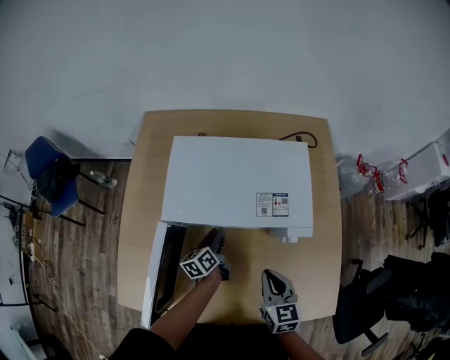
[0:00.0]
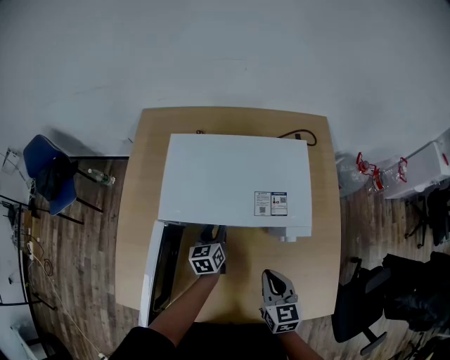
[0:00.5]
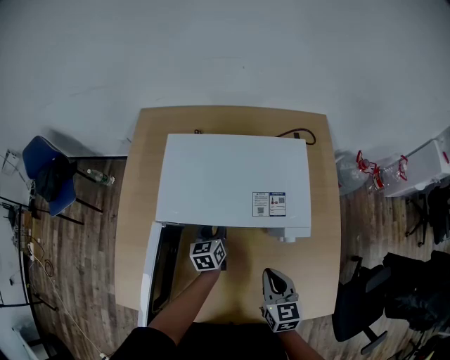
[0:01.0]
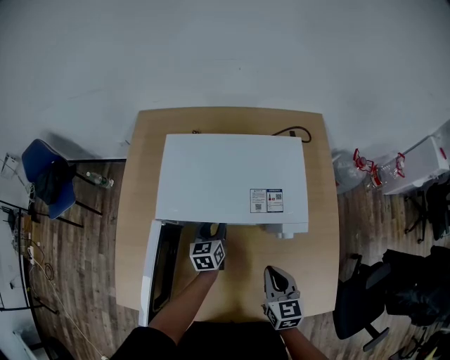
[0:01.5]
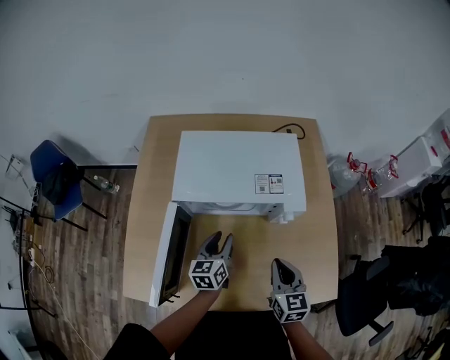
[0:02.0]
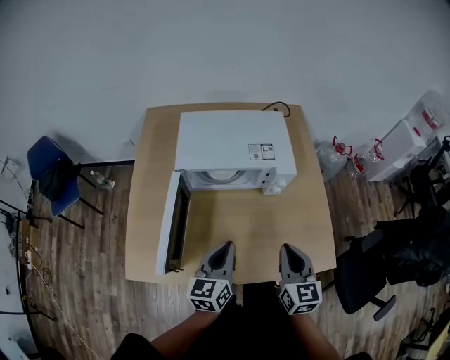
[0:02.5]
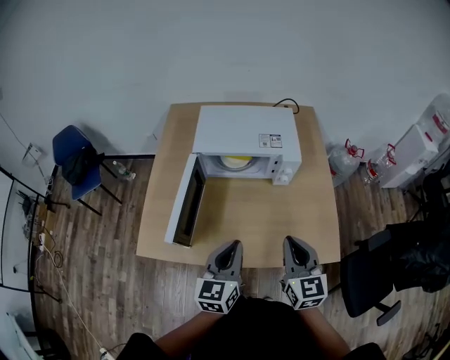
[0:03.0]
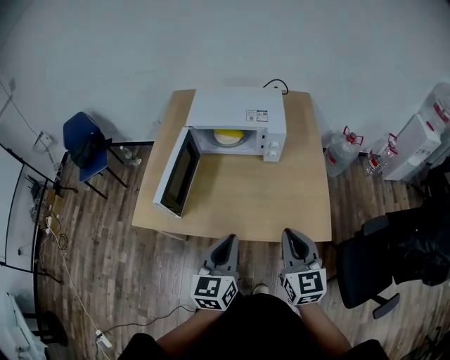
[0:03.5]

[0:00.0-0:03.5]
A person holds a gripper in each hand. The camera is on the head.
0:00.0 to 0:02.0: The right gripper shifts by roughly 5 cm.
0:02.0 to 0:03.5: The right gripper changes place by roughly 25 cm.

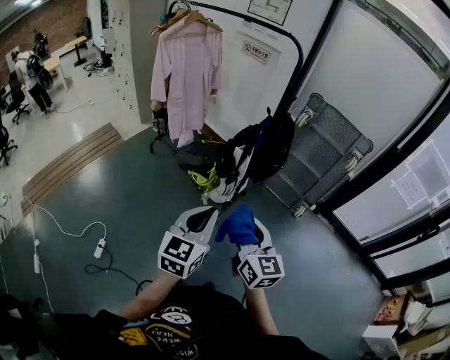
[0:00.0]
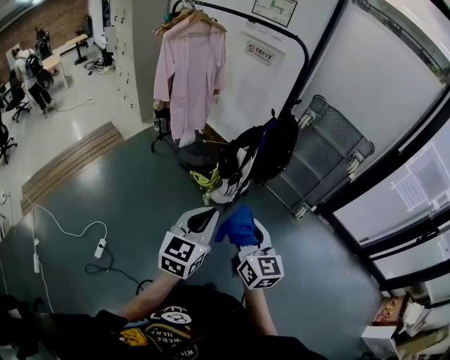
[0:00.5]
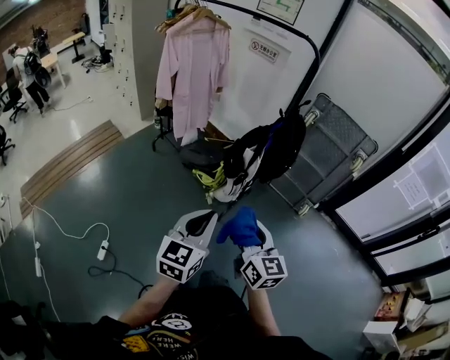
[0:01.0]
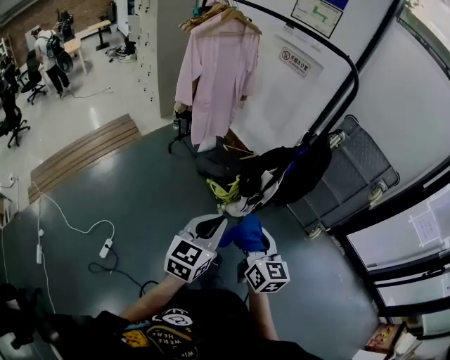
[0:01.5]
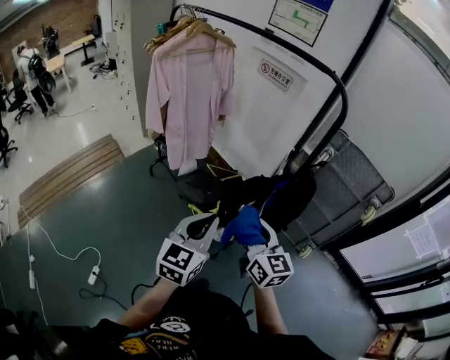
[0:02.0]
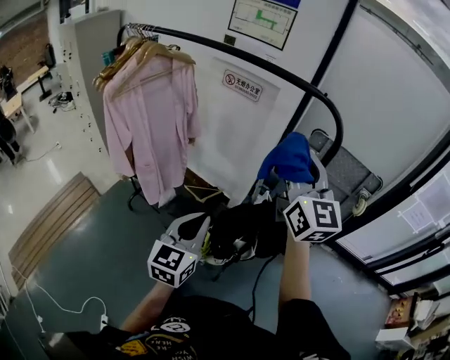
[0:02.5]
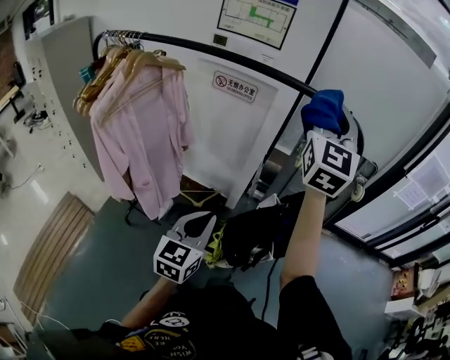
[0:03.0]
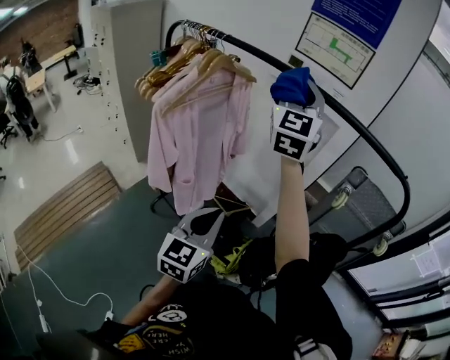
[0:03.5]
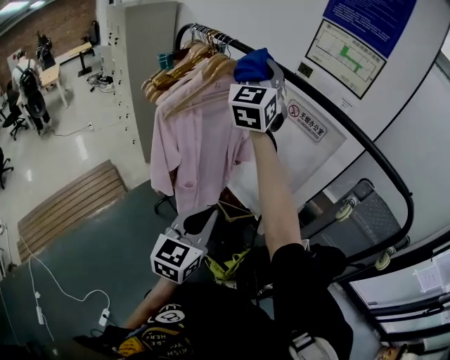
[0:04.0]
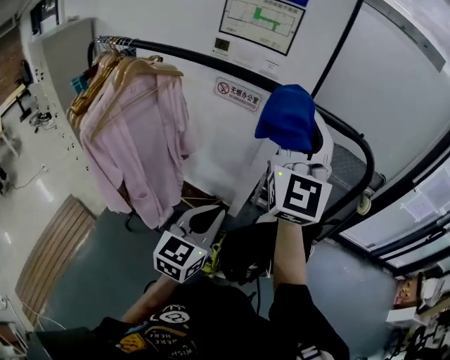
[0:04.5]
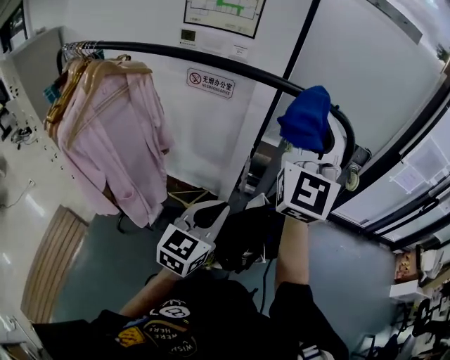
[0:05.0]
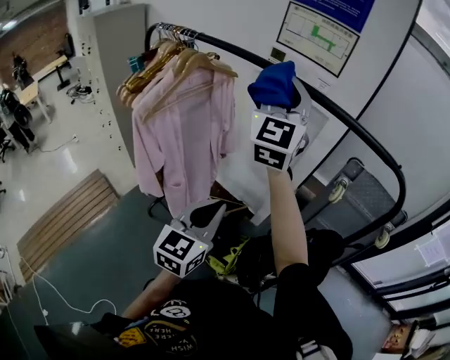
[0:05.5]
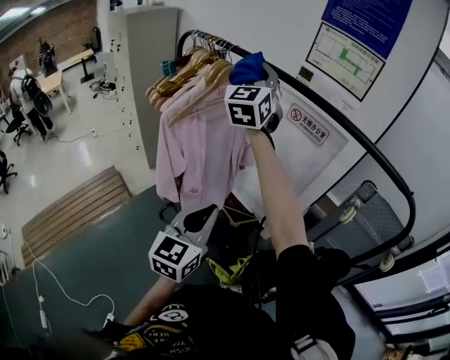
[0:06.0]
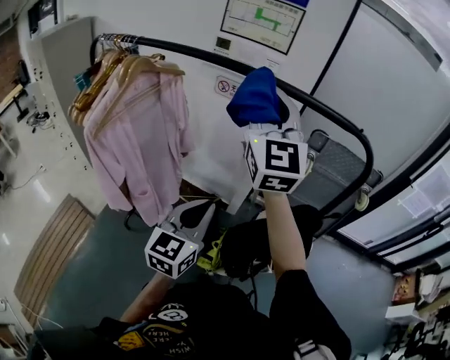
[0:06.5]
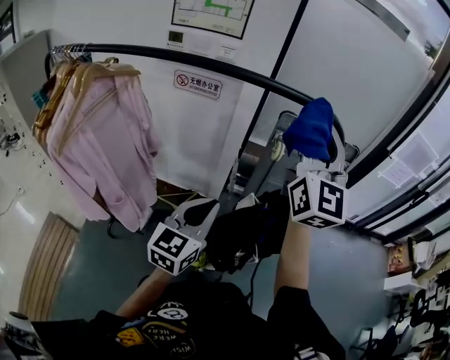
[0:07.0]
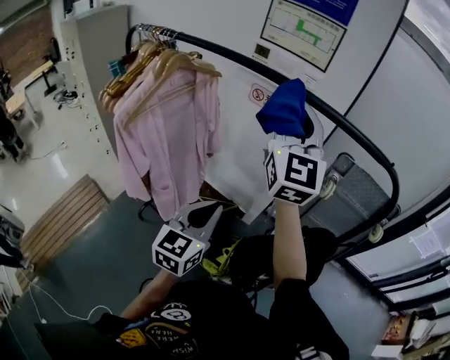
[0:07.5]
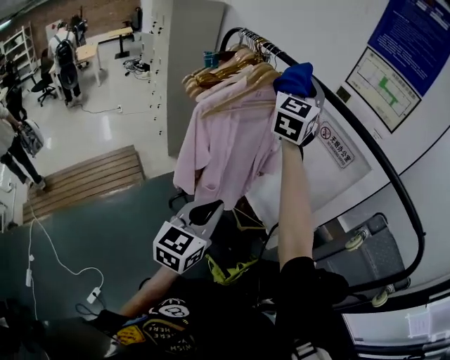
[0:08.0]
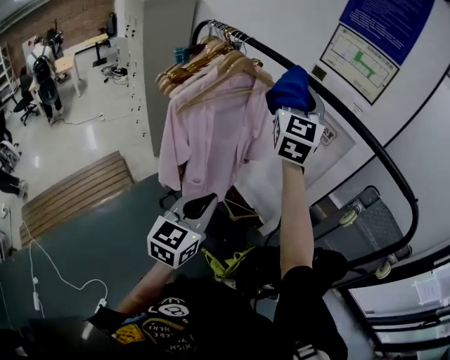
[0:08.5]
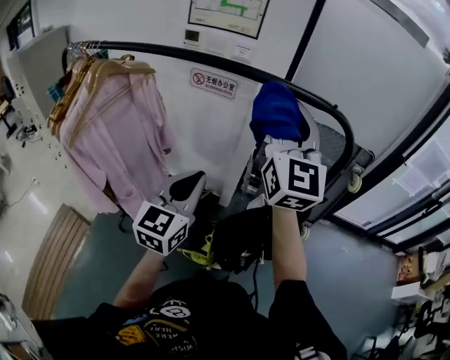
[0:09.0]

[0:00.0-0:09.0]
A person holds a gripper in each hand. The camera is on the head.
0:00.0 to 0:02.0: Both grippers travel together forward, approximately 30 cm.
0:02.0 to 0:04.5: The right gripper shifts by about 50 cm, and points its fingers approximately 30 degrees further upward. Meanwhile the left gripper ends up roughly 35 cm from where it was, and changes its angle by approximately 20 degrees.

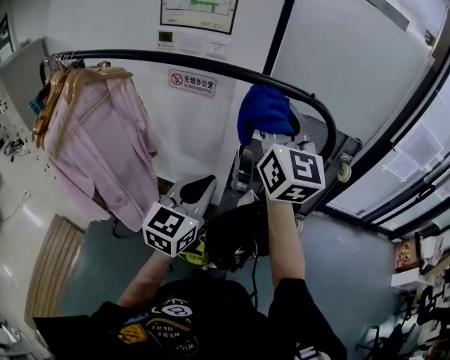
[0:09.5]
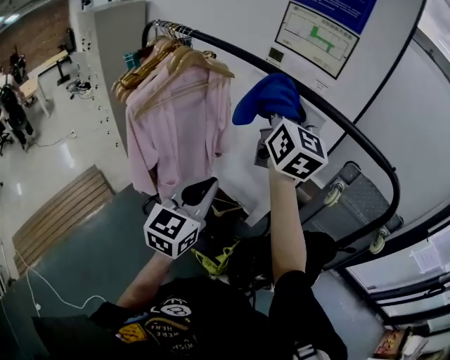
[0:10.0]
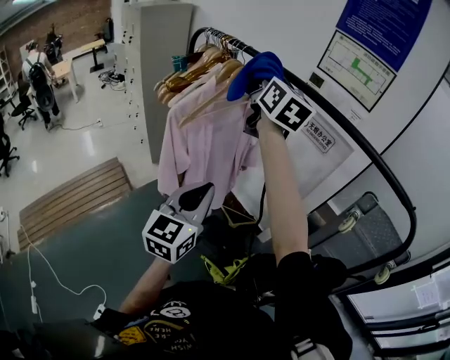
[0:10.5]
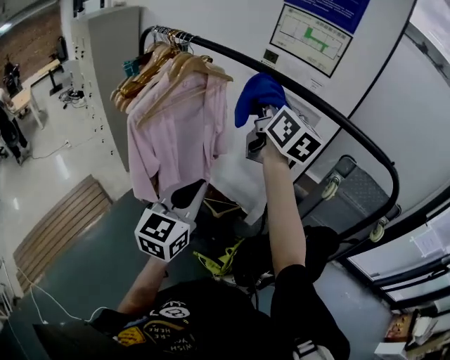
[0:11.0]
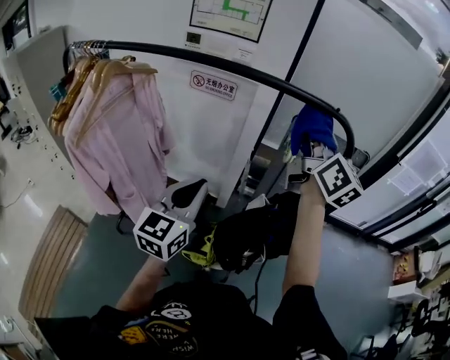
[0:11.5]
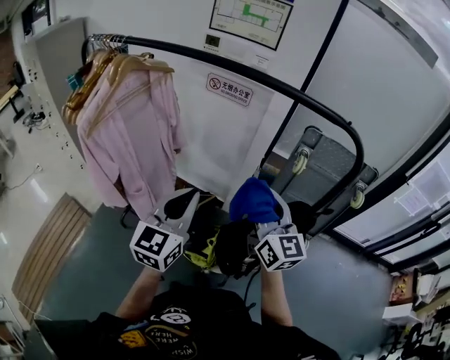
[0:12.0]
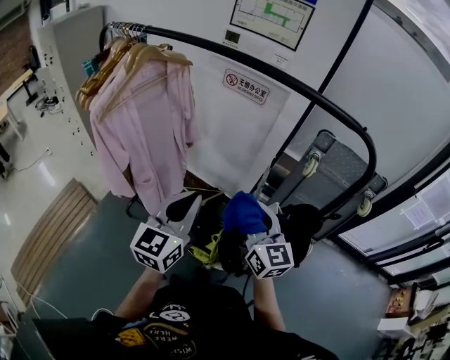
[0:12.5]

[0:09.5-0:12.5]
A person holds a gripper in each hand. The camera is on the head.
0:09.5 to 0:11.0: The left gripper moves some 25 cm, and turns by approximately 30 degrees, while the right gripper swivels approximately 30 degrees.
0:11.0 to 0:12.5: The left gripper travels to the right by approximately 10 cm. Meanwhile the right gripper is displaced downward, backward and to the right by some 35 cm.

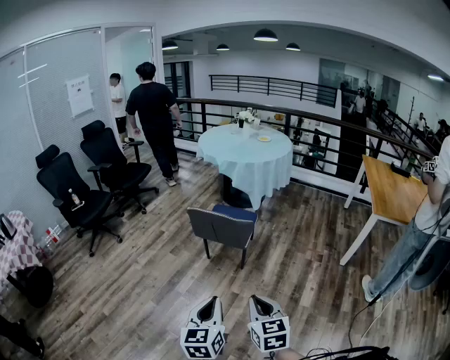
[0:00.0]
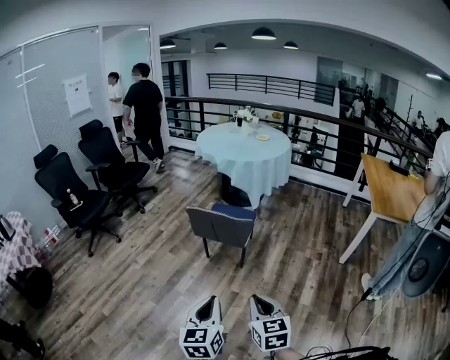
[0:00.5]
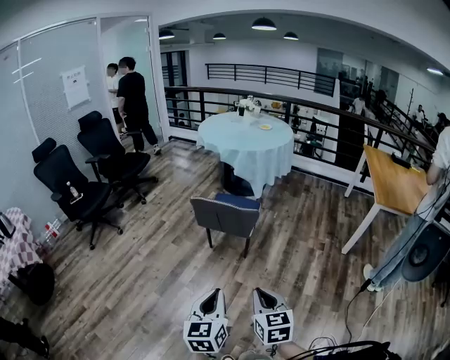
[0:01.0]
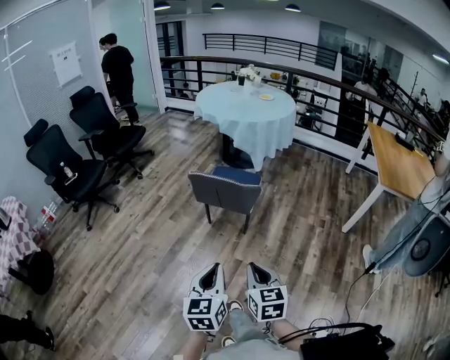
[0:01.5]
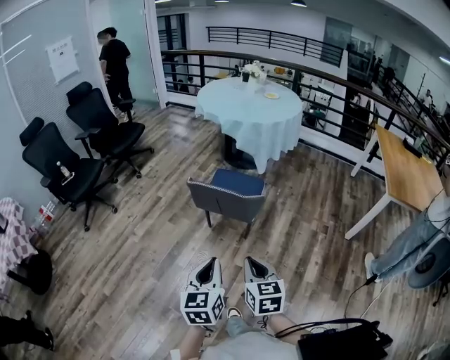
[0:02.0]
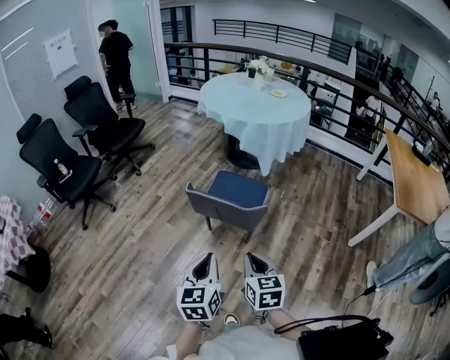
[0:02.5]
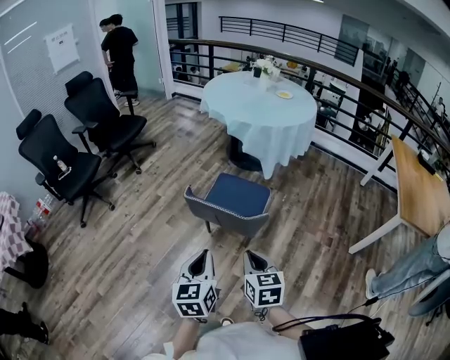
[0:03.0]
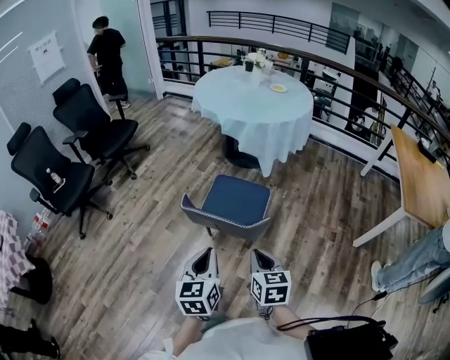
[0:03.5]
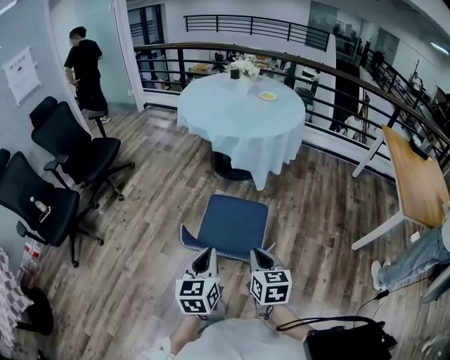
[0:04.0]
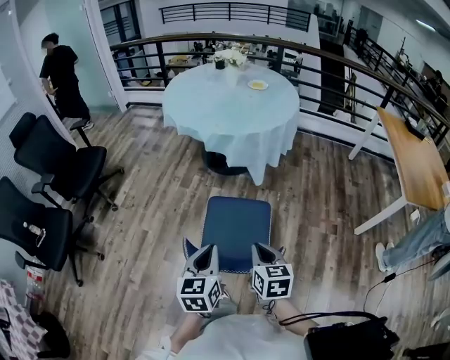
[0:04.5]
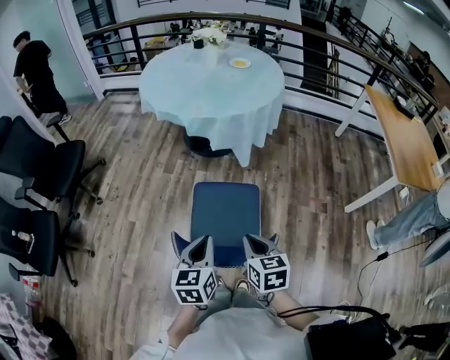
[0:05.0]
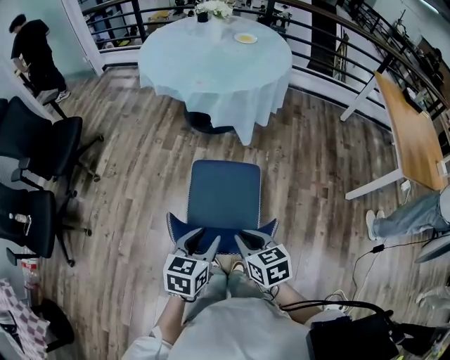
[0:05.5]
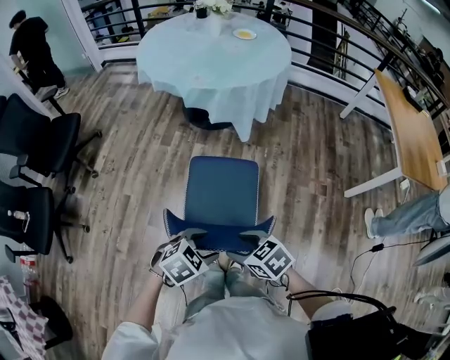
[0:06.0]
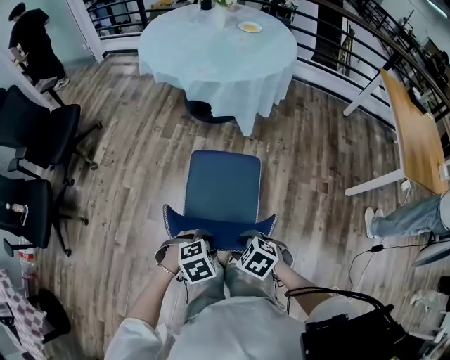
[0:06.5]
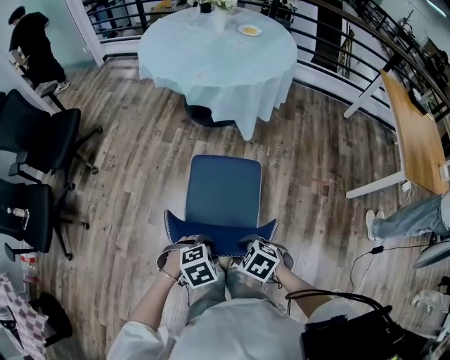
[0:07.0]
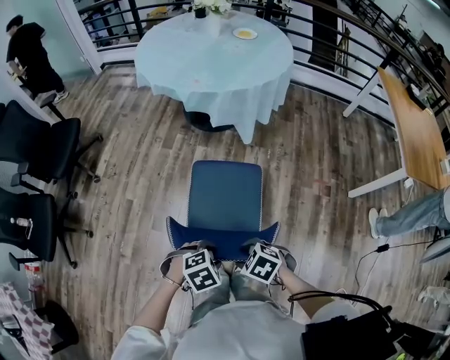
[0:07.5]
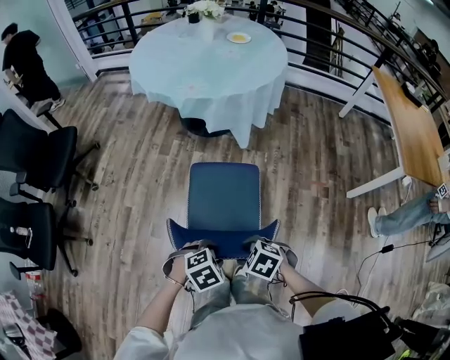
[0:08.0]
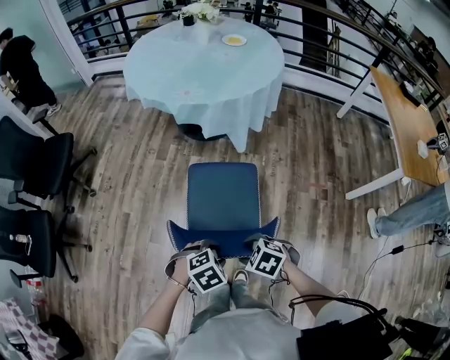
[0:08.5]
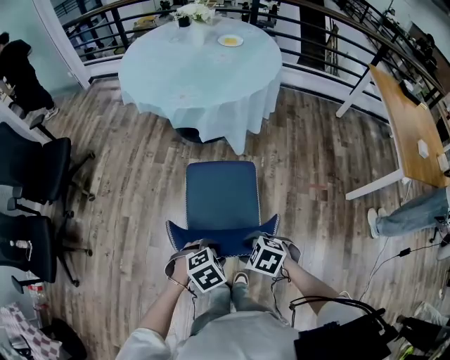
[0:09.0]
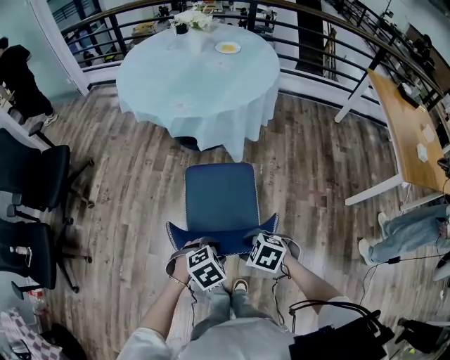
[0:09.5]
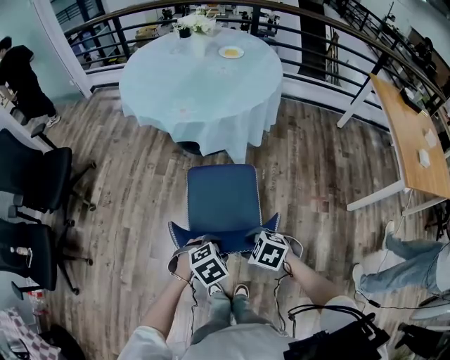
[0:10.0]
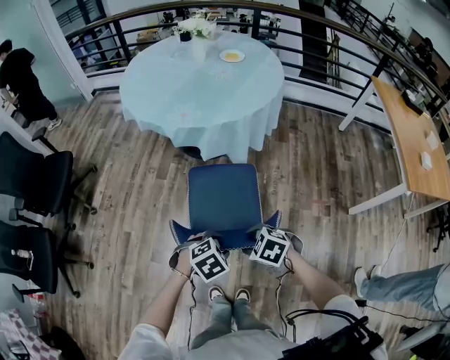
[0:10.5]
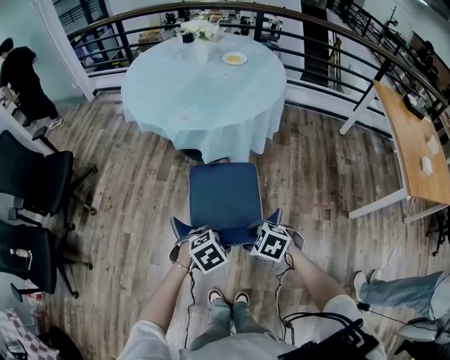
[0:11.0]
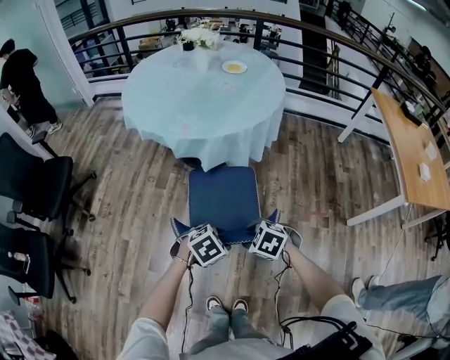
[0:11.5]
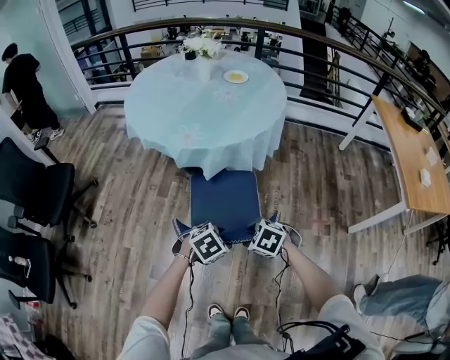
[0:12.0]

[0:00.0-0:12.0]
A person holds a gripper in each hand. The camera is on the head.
0:00.0 to 0:02.0: Both grippers move forward, about 15 cm.
0:02.0 to 0:04.0: Both grippers travel together forward, approximately 35 cm.
0:04.0 to 0:06.0: The two grippers go roughly 10 cm downward. The right gripper changes its angle by approximately 40 degrees, and opens up; the left gripper points its fingers about 40 degrees further downward, and opens its fingers.
0:06.0 to 0:08.0: The right gripper goes about 5 cm downward, and swivels approximately 30 degrees.
0:08.0 to 0:10.0: The left gripper shifts by roughly 15 cm. The right gripper moves approximately 15 cm.
0:10.0 to 0:12.0: The right gripper changes place by roughly 15 cm, while the left gripper shifts by approximately 15 cm.
